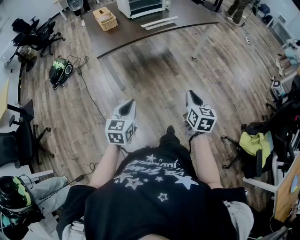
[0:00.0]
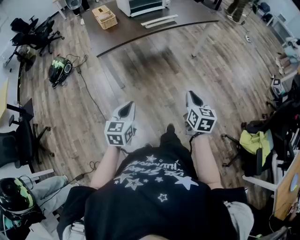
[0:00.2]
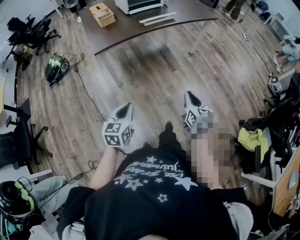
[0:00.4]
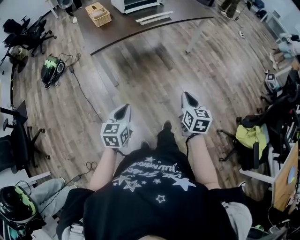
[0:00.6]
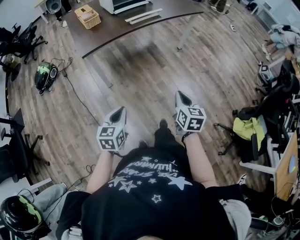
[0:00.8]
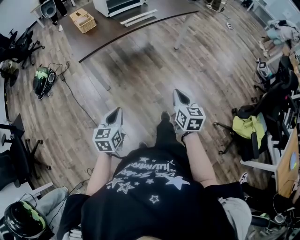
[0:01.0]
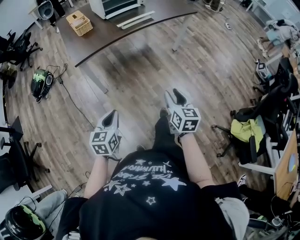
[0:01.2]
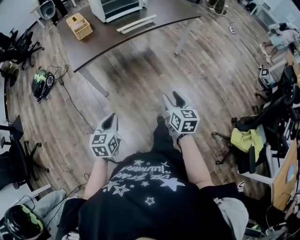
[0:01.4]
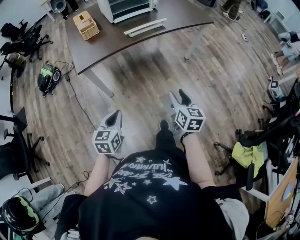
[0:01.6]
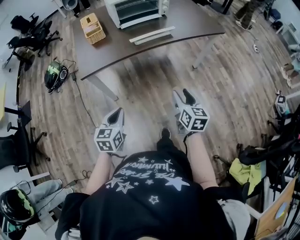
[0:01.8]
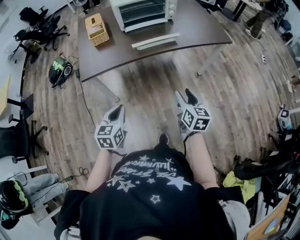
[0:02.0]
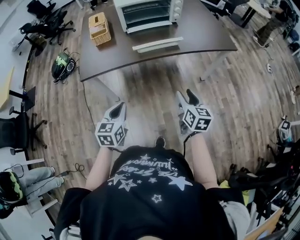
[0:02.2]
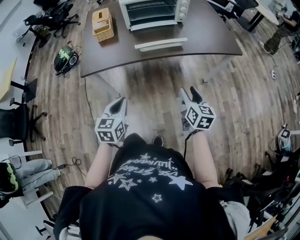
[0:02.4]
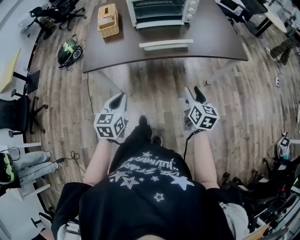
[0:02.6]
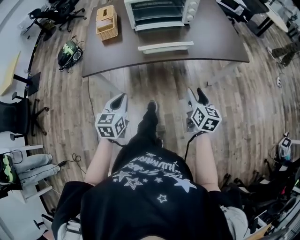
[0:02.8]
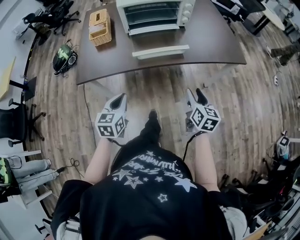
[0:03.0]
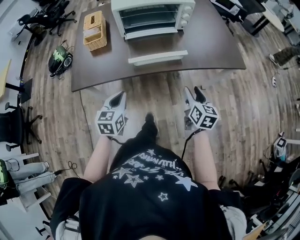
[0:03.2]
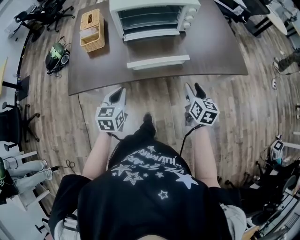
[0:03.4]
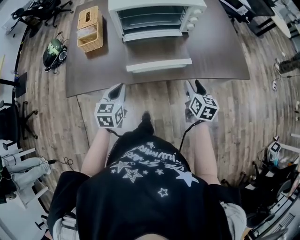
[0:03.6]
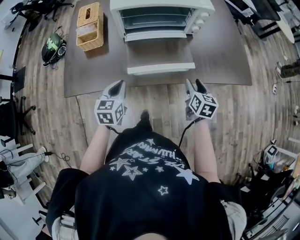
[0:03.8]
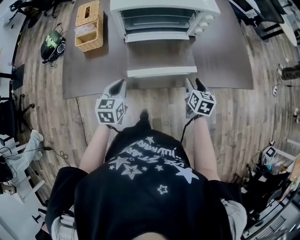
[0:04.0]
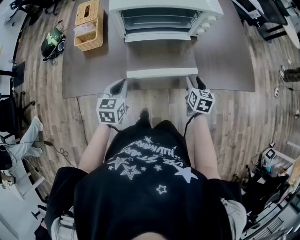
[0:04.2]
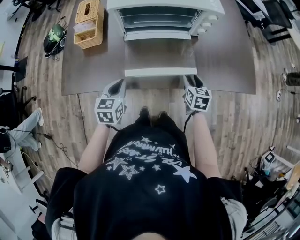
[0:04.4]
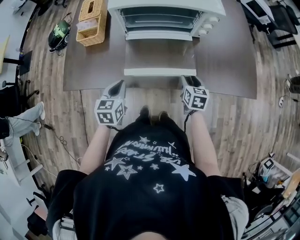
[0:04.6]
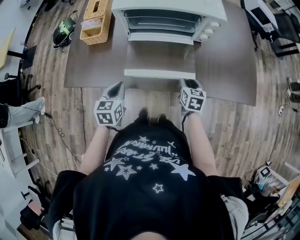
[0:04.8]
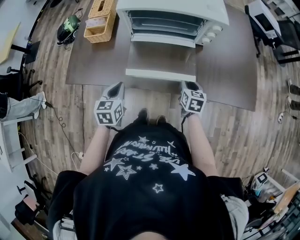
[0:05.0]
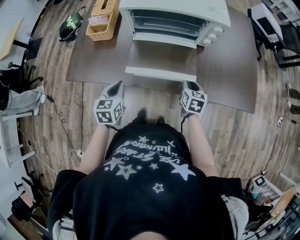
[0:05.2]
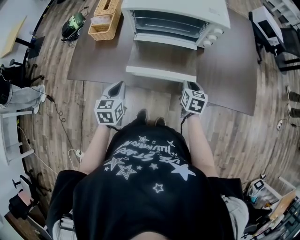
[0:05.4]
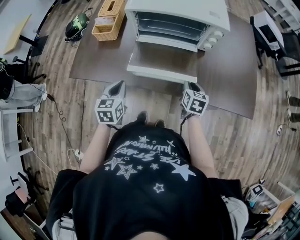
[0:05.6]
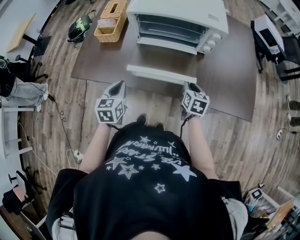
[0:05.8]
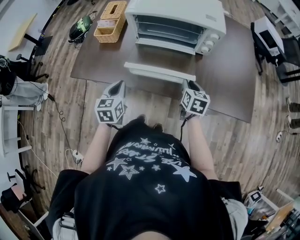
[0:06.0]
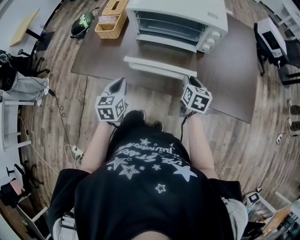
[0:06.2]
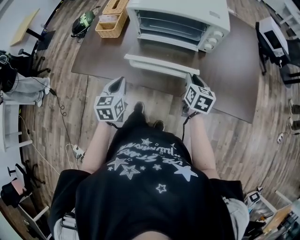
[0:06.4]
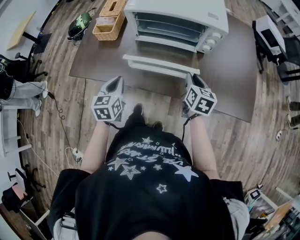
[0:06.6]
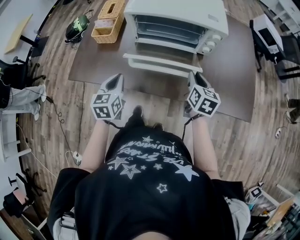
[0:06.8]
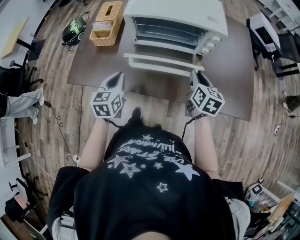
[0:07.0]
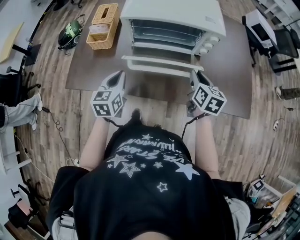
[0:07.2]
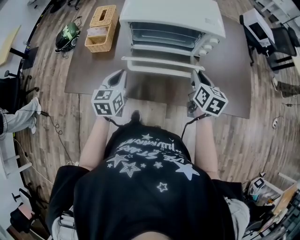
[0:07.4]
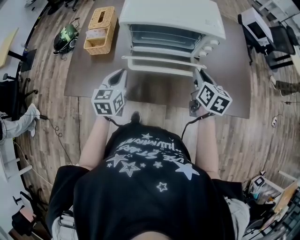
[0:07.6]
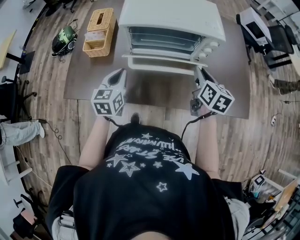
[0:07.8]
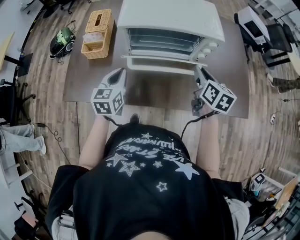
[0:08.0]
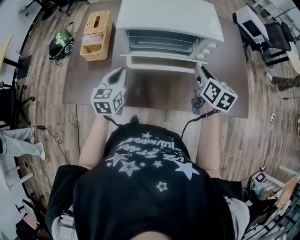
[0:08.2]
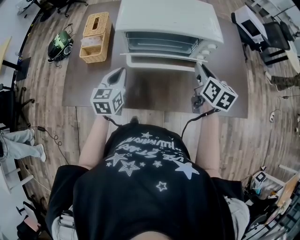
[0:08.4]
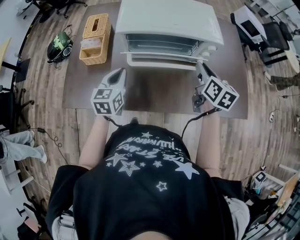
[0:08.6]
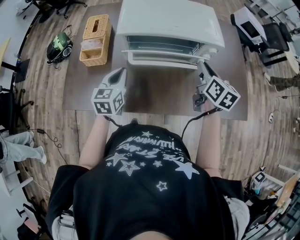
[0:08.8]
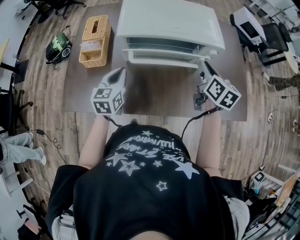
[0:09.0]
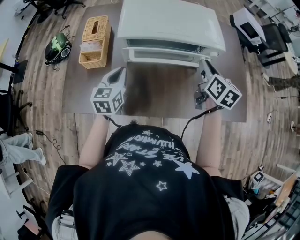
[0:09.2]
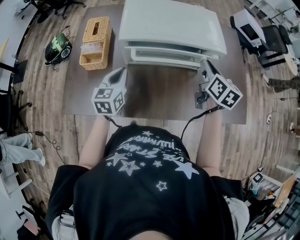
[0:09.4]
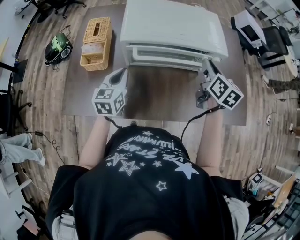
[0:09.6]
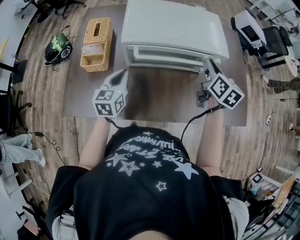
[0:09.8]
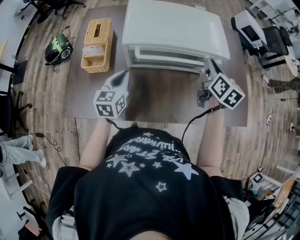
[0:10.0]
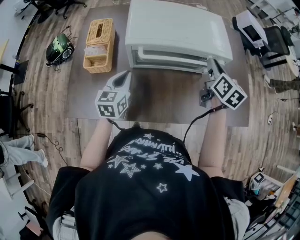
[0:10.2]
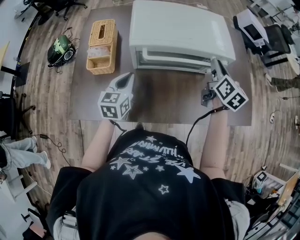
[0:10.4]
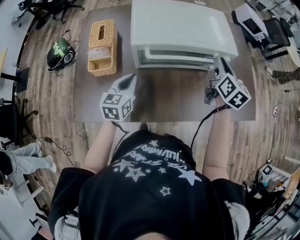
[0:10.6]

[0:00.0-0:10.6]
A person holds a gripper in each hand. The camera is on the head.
0:00.0 to 0:01.6: The two grippers go roughly 15 cm forward. The right gripper opens its fingers.
0:01.6 to 0:03.0: Both grippers move forward and to the right, some 30 cm.
0:03.0 to 0:04.6: The right gripper is displaced forward and downward by some 30 cm, and rotates approximately 20 degrees. The left gripper shifts some 20 cm forward.
0:04.6 to 0:06.0: The right gripper shifts roughly 5 cm upward, and closes up; the left gripper changes place by approximately 5 cm.
0:06.0 to 0:07.6: The left gripper heads forward, covering about 10 cm, while the right gripper is displaced upward and forward by some 10 cm.
0:07.6 to 0:09.0: Both grippers move forward, roughly 5 cm.
0:09.0 to 0:10.6: The grippers stay close to where they were, moving slightly.

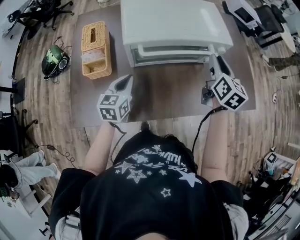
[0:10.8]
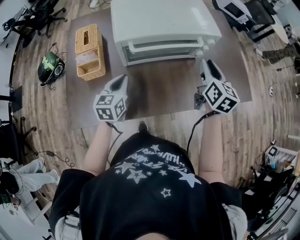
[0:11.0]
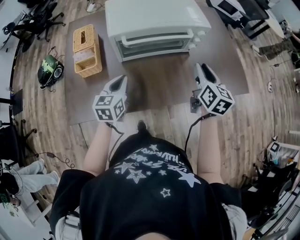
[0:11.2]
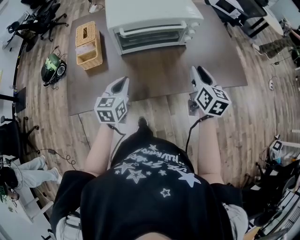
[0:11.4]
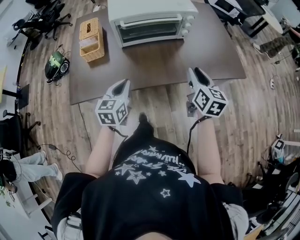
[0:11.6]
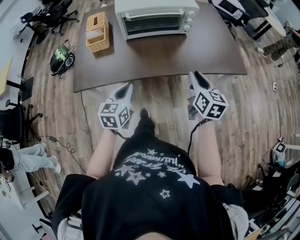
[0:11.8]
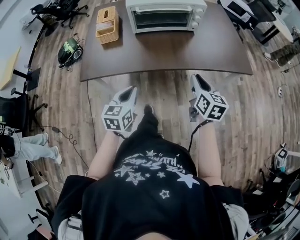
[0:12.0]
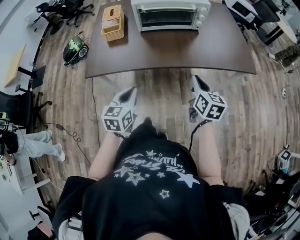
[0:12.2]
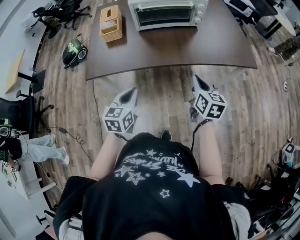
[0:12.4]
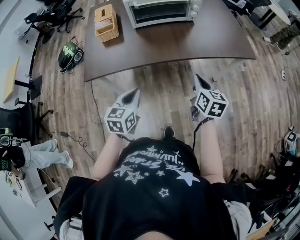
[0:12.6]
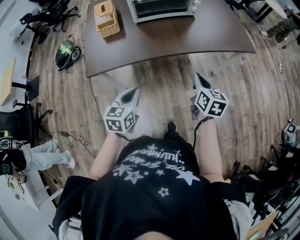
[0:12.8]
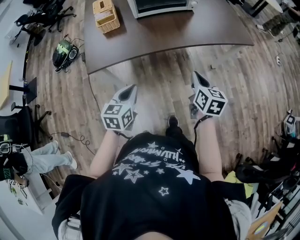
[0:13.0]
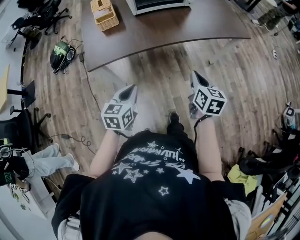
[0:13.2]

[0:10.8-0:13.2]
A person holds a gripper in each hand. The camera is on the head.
0:10.8 to 0:12.0: The two grippers go some 35 cm backward.
0:12.0 to 0:13.2: The right gripper goes about 20 cm backward and to the left, while the left gripper goes some 15 cm to the left and backward.

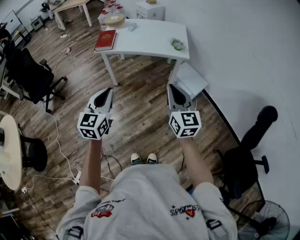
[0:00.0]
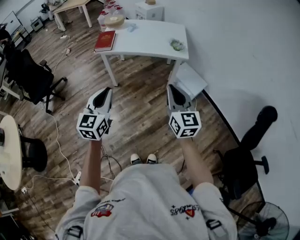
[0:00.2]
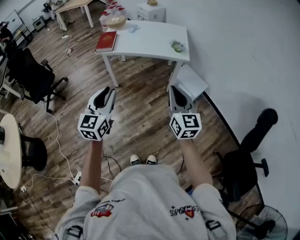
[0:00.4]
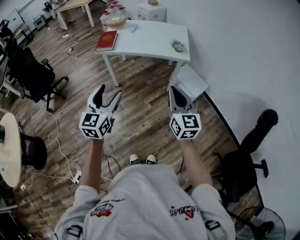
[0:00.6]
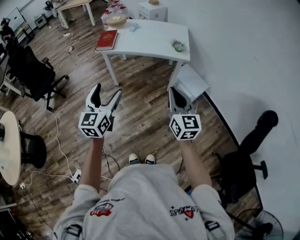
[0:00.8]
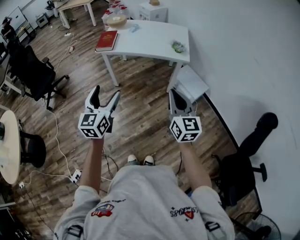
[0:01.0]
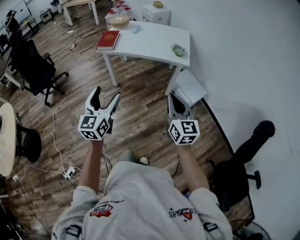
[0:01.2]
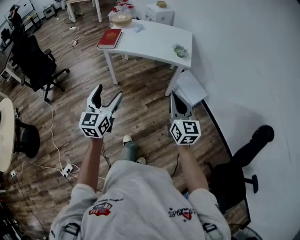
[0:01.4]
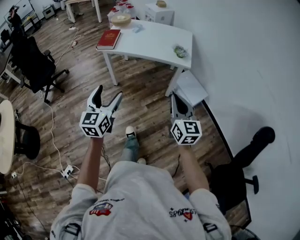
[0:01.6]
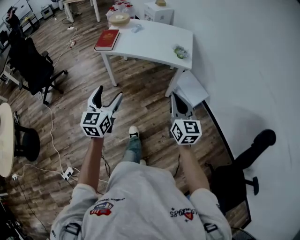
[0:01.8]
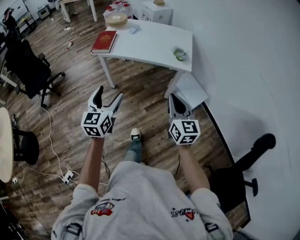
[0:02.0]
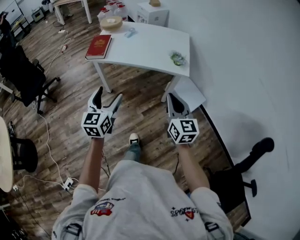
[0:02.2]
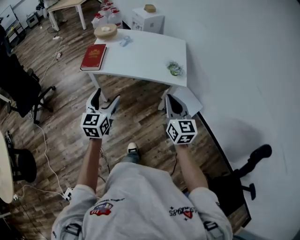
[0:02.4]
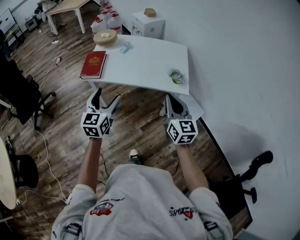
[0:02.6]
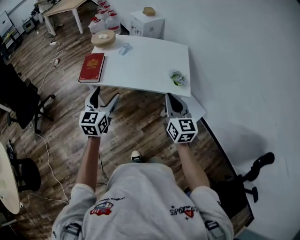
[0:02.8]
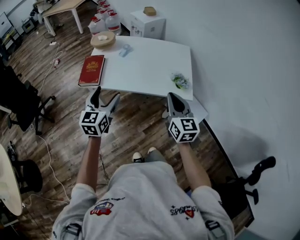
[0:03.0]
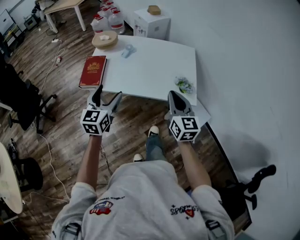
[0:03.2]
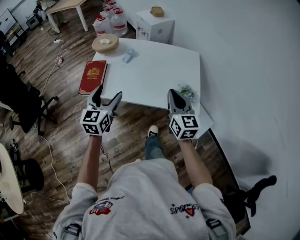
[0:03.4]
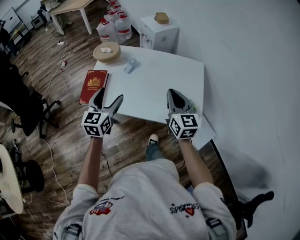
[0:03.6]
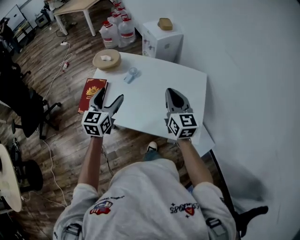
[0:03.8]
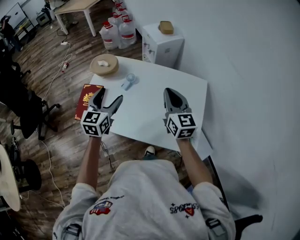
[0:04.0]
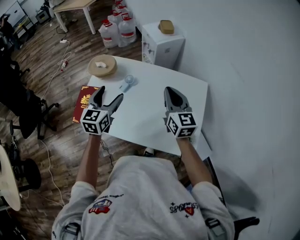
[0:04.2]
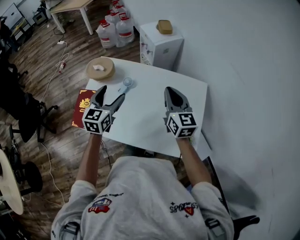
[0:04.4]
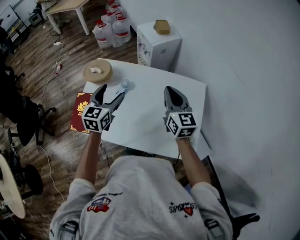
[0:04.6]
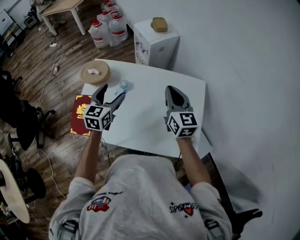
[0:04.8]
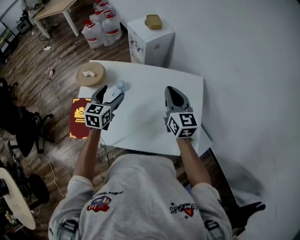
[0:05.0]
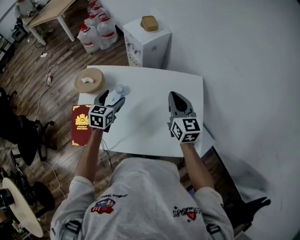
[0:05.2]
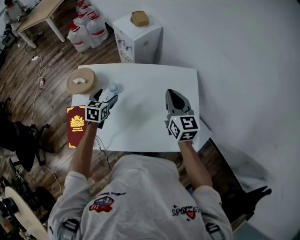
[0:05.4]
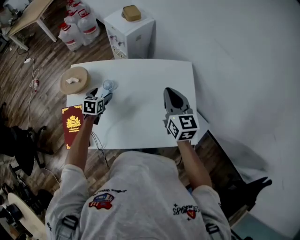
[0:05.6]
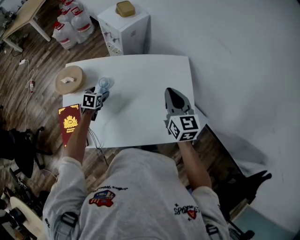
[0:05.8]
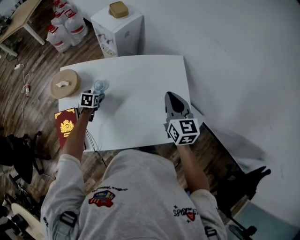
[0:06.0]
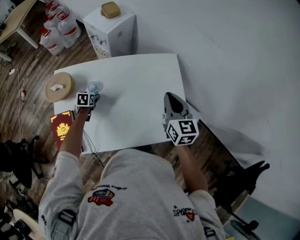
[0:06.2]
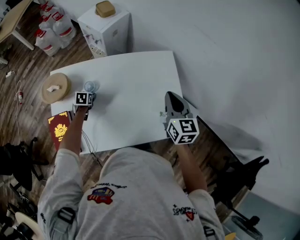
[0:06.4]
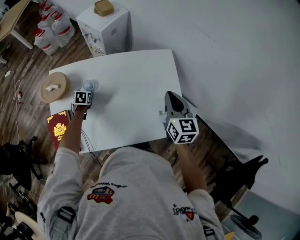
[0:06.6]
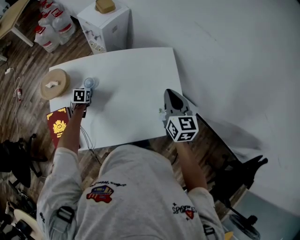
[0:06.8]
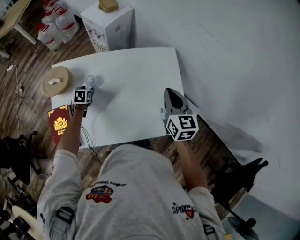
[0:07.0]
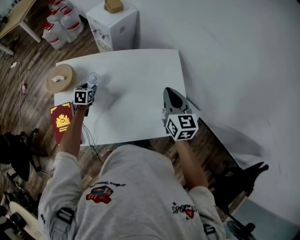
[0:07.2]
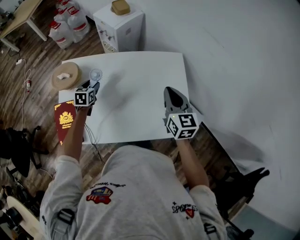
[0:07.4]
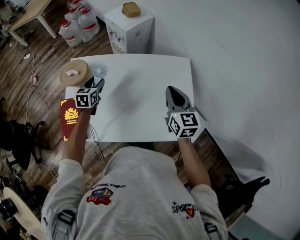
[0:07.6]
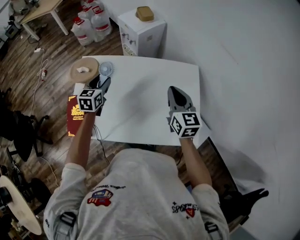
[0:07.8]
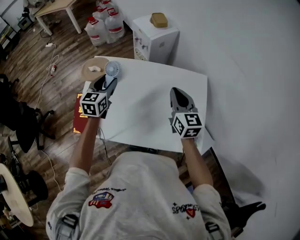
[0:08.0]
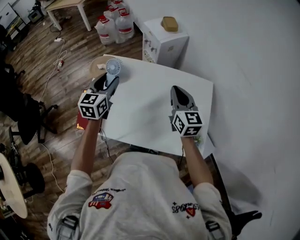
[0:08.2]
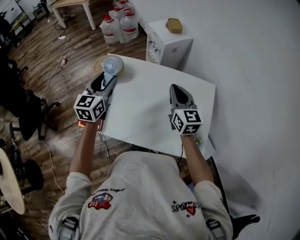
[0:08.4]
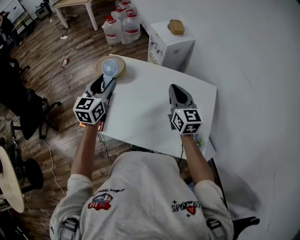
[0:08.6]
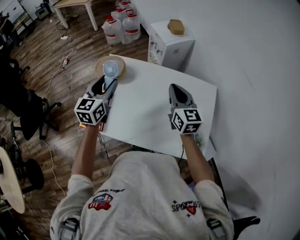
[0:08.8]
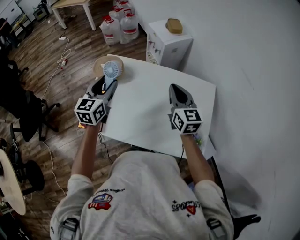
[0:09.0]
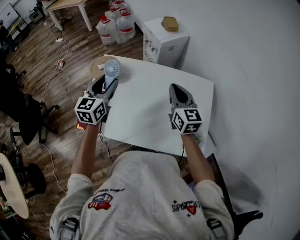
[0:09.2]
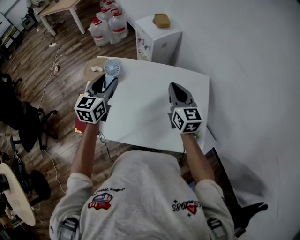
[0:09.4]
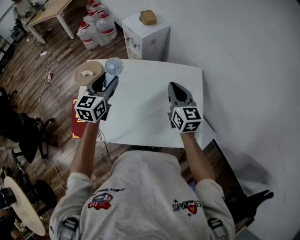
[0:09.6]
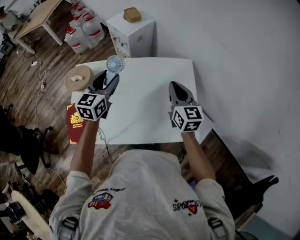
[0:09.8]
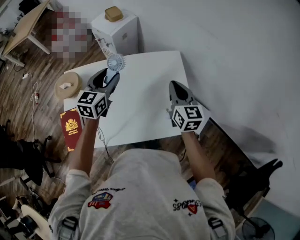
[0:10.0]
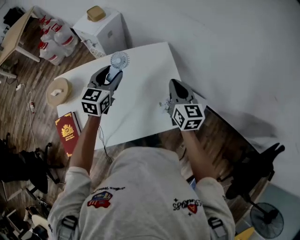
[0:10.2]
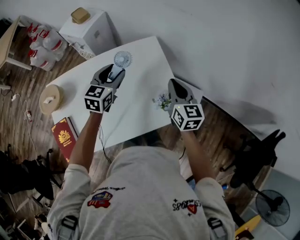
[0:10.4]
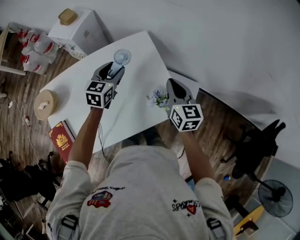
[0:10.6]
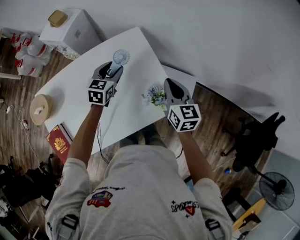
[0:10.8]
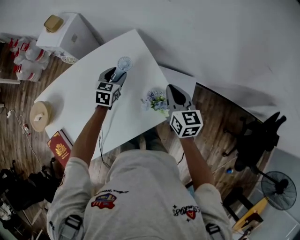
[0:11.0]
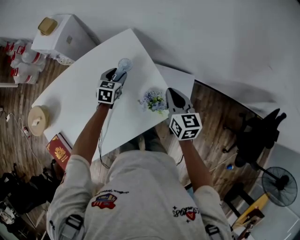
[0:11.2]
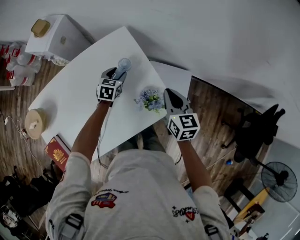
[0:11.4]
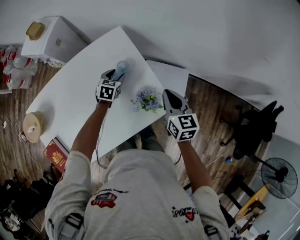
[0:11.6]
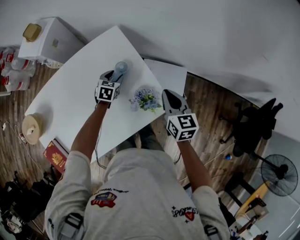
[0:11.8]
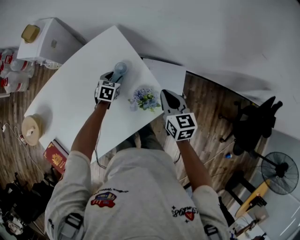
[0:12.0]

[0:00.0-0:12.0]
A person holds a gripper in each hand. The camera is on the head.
0:00.0 to 0:01.6: The left gripper shifts roughly 5 cm to the right, and opens its fingers; the right gripper heads to the right, covering roughly 10 cm.
0:01.6 to 0:03.0: Both grippers are carried forward, approximately 40 cm.
0:03.0 to 0:04.4: The two grippers travel together, forward, approximately 50 cm.
0:04.4 to 0:06.0: The left gripper goes some 35 cm downward and forward, and tips its fingers downward by some 40 degrees; the right gripper moves to the right and downward, roughly 10 cm, and turns by some 30 degrees.
0:06.0 to 0:07.6: The left gripper is displaced upward by about 15 cm, rotates approximately 30 degrees, and closes its fingers.
0:07.6 to 0:09.0: The right gripper moves to the left and forward, some 15 cm, while the left gripper moves upward, backward and to the left, roughly 20 cm, and swivels about 20 degrees.
0:09.0 to 0:10.4: The right gripper ends up approximately 35 cm from where it was, and swivels roughly 40 degrees. The left gripper moves approximately 40 cm, and turns by some 40 degrees.
0:10.4 to 0:12.0: The left gripper goes about 35 cm downward and to the right, and turns by about 30 degrees. The right gripper shifts some 15 cm to the right and downward.
